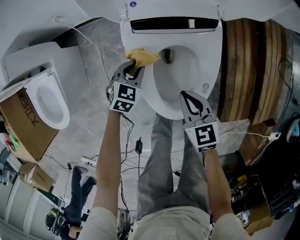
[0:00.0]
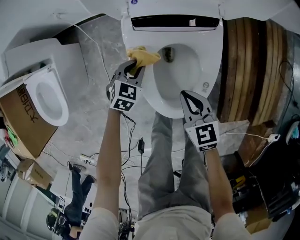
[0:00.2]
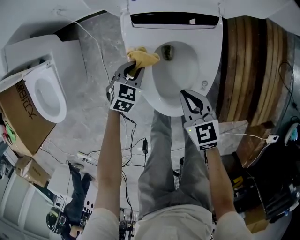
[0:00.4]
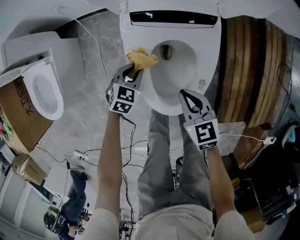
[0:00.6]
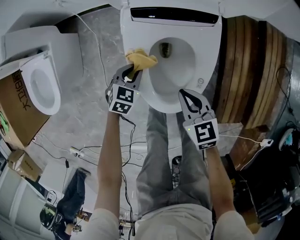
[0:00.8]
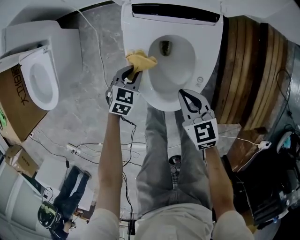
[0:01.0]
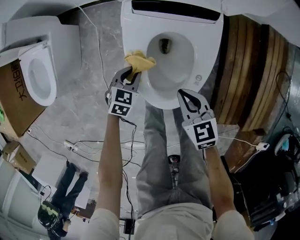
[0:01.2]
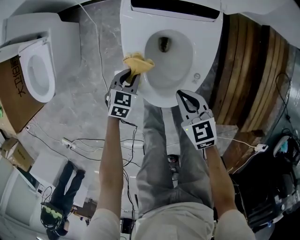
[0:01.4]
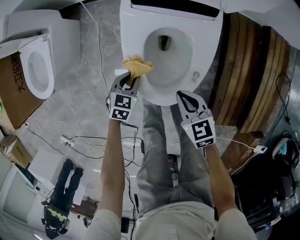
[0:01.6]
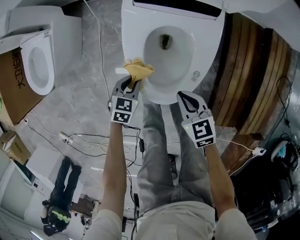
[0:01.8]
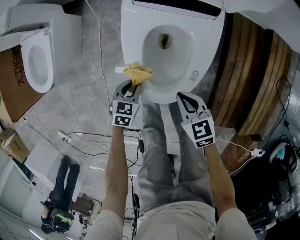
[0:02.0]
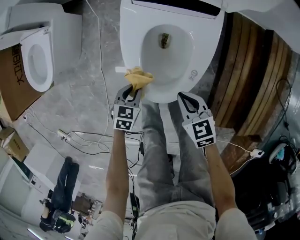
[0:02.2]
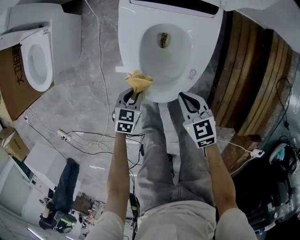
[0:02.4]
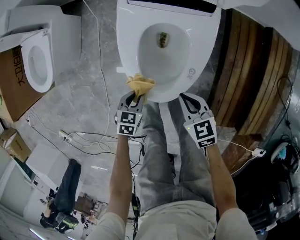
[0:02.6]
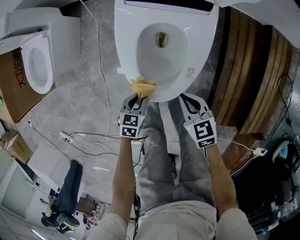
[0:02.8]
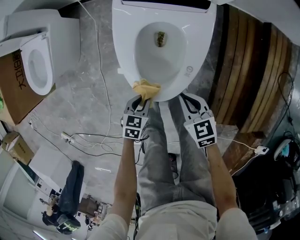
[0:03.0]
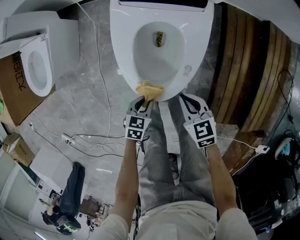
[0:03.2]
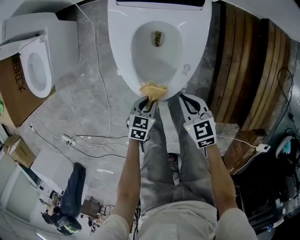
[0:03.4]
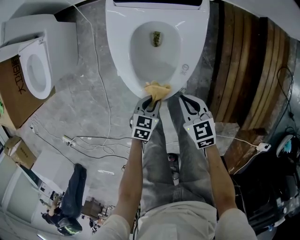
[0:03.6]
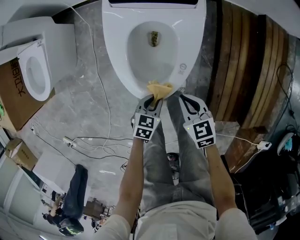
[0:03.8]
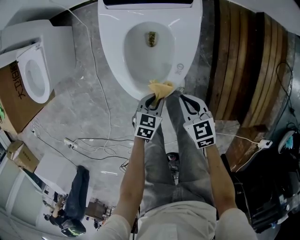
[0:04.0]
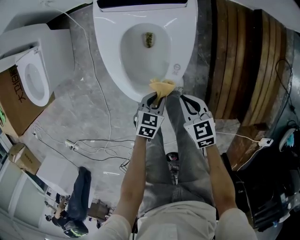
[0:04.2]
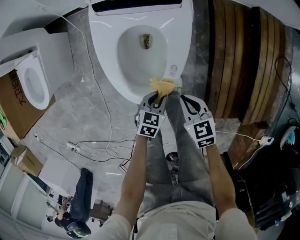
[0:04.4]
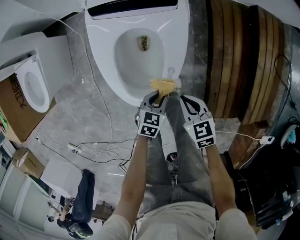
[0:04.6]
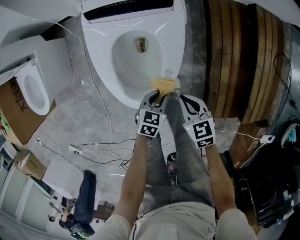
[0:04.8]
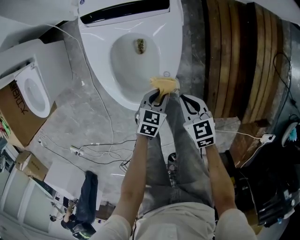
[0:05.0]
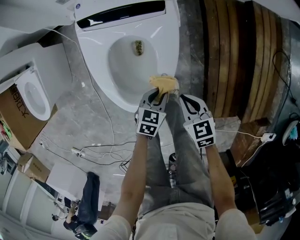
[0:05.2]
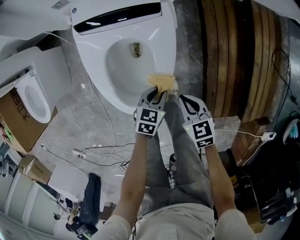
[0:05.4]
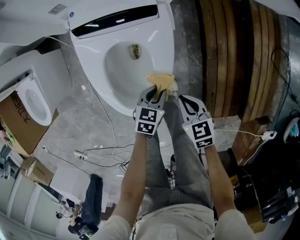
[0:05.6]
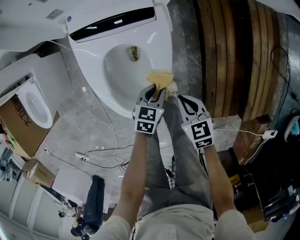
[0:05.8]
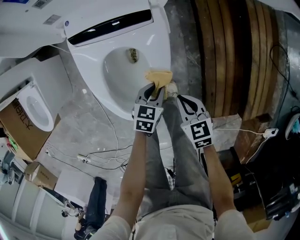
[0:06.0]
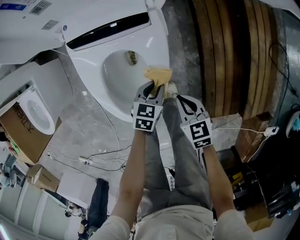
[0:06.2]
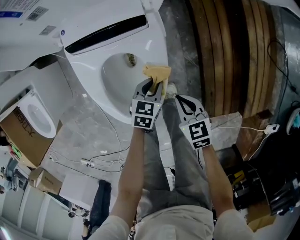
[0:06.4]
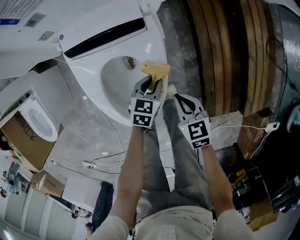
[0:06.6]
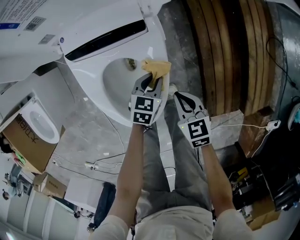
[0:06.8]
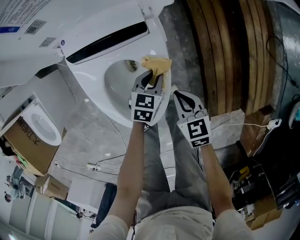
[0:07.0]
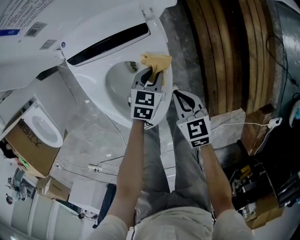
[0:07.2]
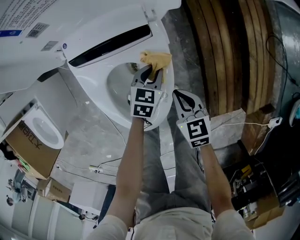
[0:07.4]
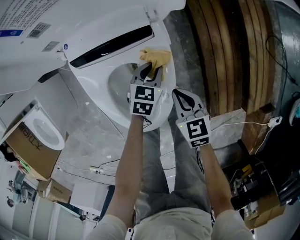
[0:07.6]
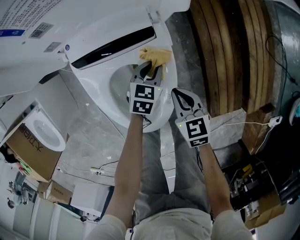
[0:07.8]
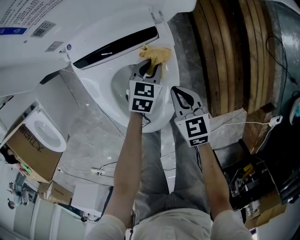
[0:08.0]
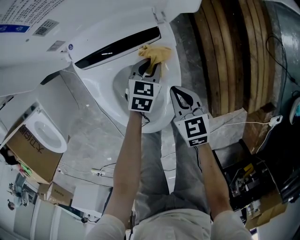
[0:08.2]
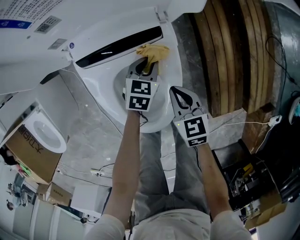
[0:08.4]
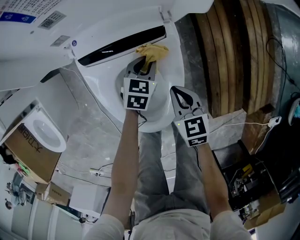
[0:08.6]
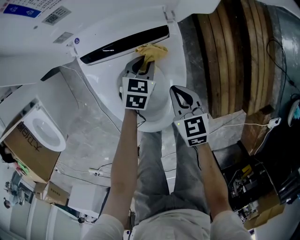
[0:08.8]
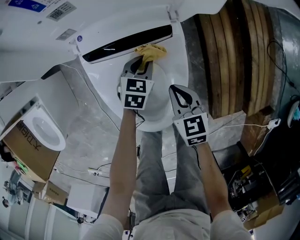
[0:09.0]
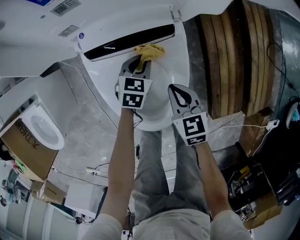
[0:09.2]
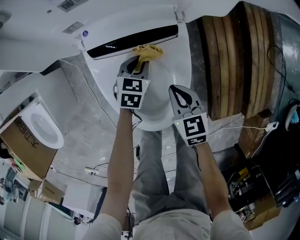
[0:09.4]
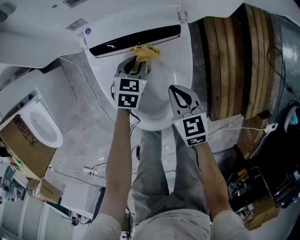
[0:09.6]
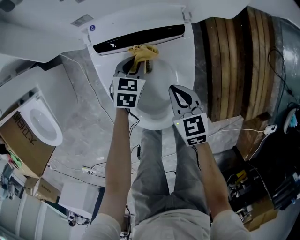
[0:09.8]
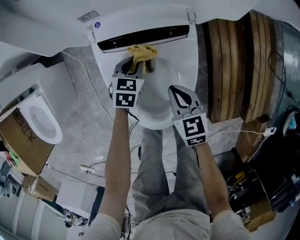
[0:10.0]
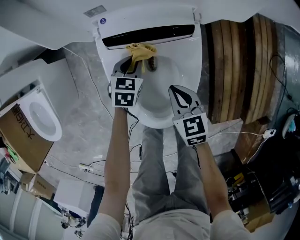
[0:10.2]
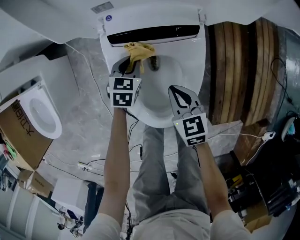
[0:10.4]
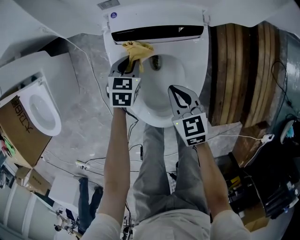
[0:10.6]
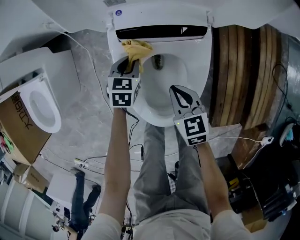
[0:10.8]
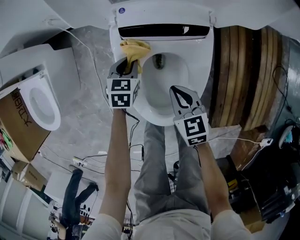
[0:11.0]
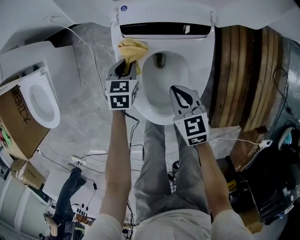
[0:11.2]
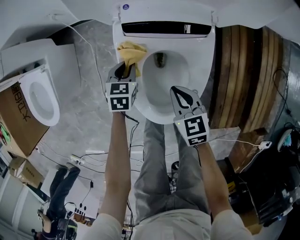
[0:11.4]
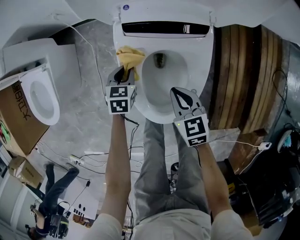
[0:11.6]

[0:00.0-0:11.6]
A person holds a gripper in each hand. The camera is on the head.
0.0 to 1.4 s: The left gripper heads backward, covering roughly 15 cm. Meanwhile the right gripper shifts roughly 5 cm backward.
1.4 to 2.8 s: The right gripper shifts approximately 5 cm backward. Meanwhile the left gripper heads backward, covering some 15 cm.
2.8 to 4.4 s: The right gripper shifts roughly 5 cm to the right. The left gripper is displaced to the right by roughly 15 cm.
4.4 to 5.8 s: The right gripper is displaced forward by approximately 5 cm. Meanwhile the left gripper shifts roughly 10 cm forward.
5.8 to 7.2 s: The left gripper shifts about 15 cm forward. Meanwhile the right gripper travels forward by approximately 5 cm.
7.2 to 8.8 s: The right gripper is displaced to the left by some 5 cm; the left gripper heads to the left and forward, covering about 10 cm.
8.8 to 10.2 s: The right gripper is displaced to the left by approximately 5 cm. The left gripper moves to the left, roughly 10 cm.
10.2 to 11.6 s: The left gripper goes roughly 10 cm to the left and backward.

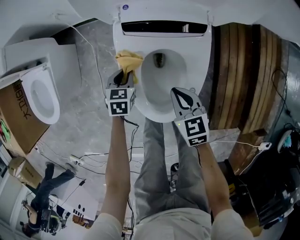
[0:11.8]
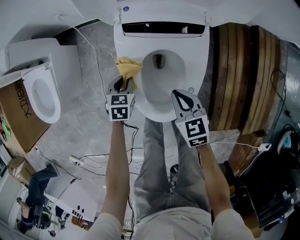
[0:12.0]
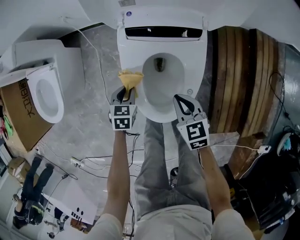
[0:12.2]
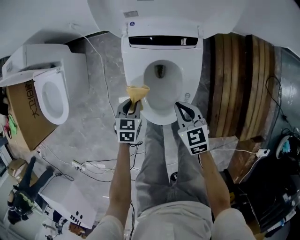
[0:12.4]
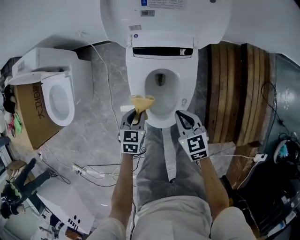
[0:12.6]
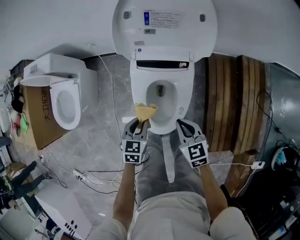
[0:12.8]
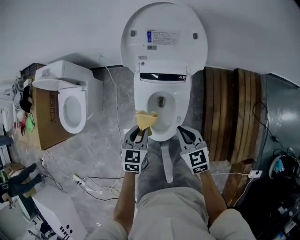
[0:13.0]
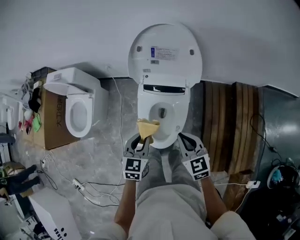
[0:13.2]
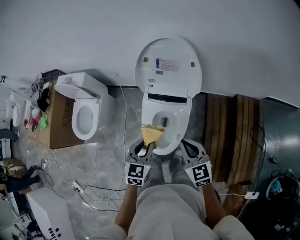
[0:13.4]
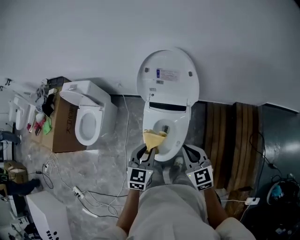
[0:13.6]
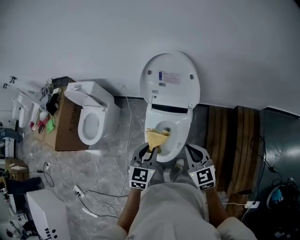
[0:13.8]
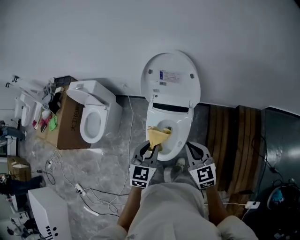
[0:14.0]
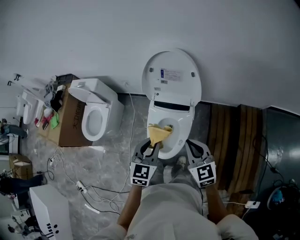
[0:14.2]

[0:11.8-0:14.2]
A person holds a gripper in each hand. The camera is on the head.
11.8 to 13.0 s: The grippers both shift upward by some 30 cm.
13.0 to 14.2 s: Both grippers move upward, about 20 cm.

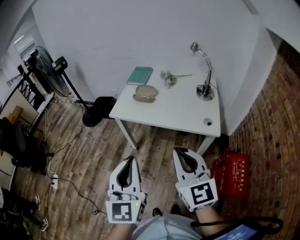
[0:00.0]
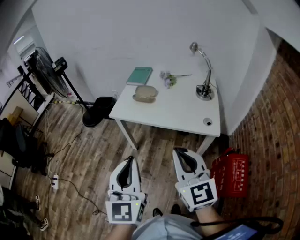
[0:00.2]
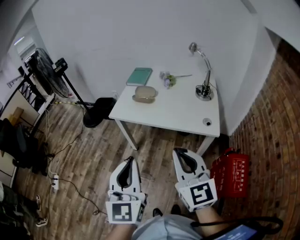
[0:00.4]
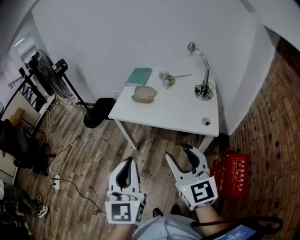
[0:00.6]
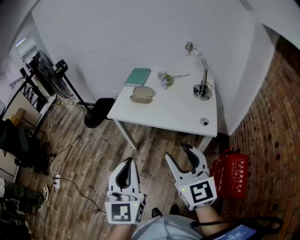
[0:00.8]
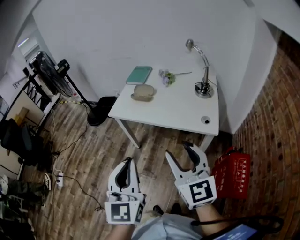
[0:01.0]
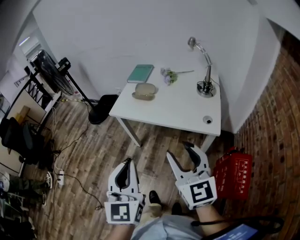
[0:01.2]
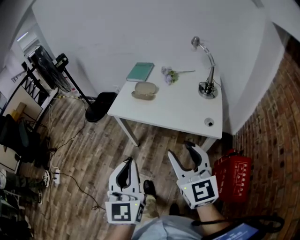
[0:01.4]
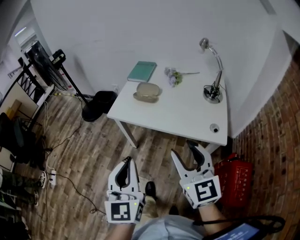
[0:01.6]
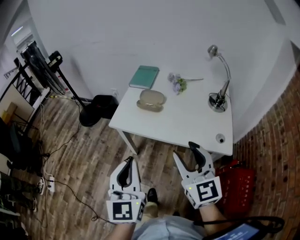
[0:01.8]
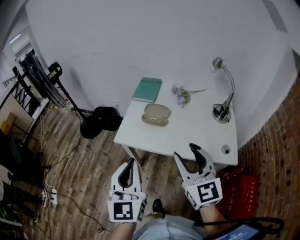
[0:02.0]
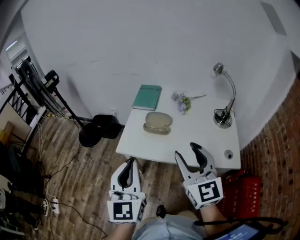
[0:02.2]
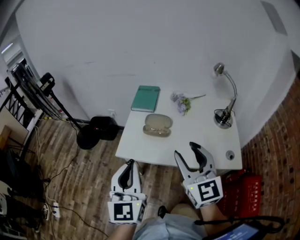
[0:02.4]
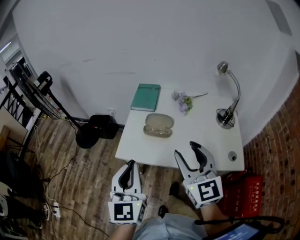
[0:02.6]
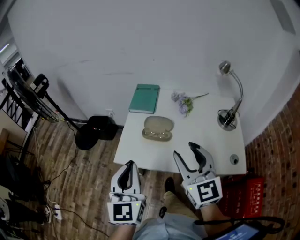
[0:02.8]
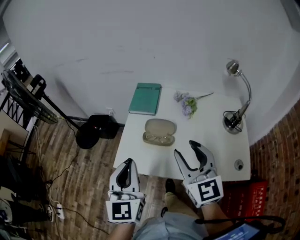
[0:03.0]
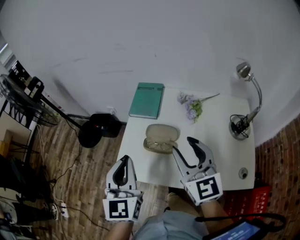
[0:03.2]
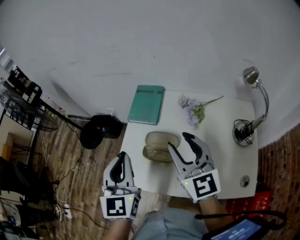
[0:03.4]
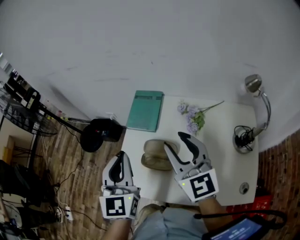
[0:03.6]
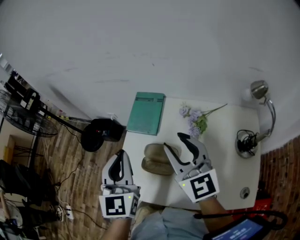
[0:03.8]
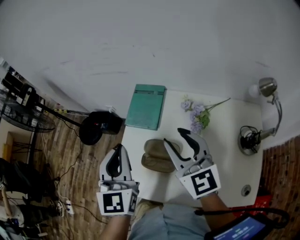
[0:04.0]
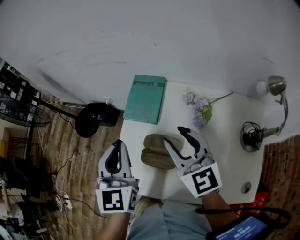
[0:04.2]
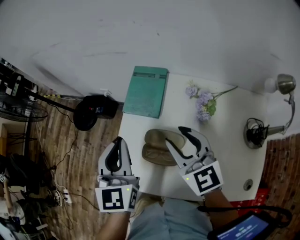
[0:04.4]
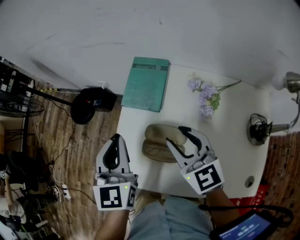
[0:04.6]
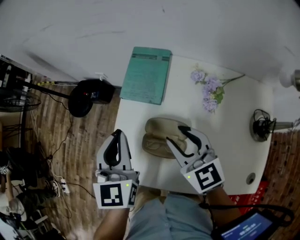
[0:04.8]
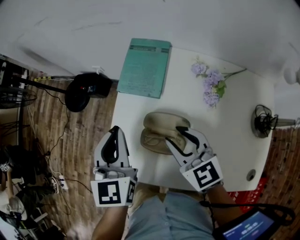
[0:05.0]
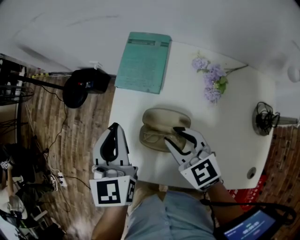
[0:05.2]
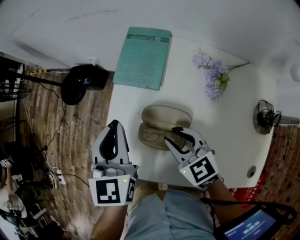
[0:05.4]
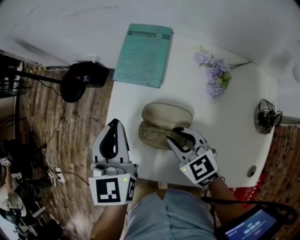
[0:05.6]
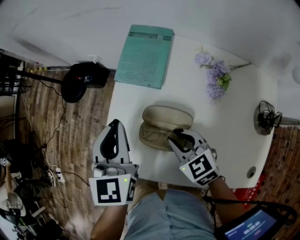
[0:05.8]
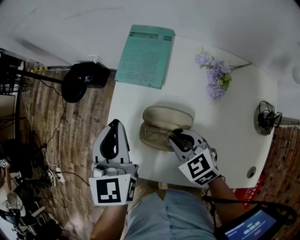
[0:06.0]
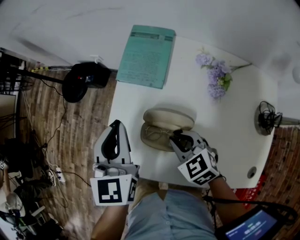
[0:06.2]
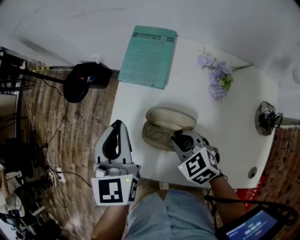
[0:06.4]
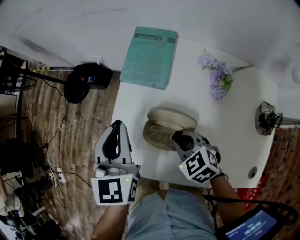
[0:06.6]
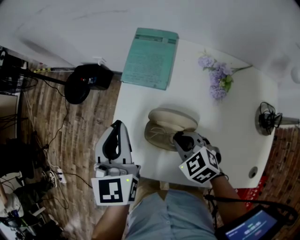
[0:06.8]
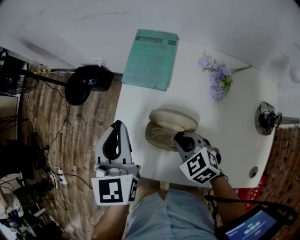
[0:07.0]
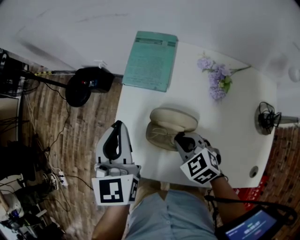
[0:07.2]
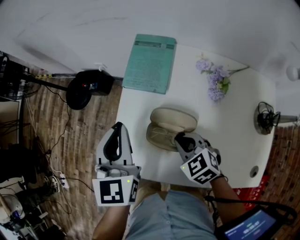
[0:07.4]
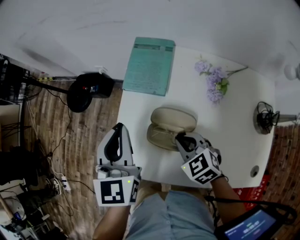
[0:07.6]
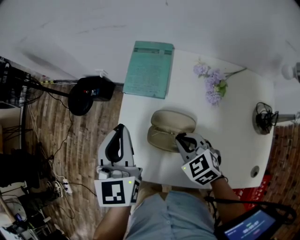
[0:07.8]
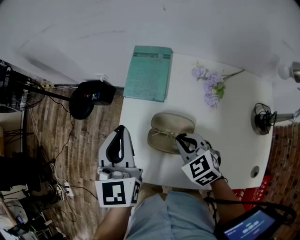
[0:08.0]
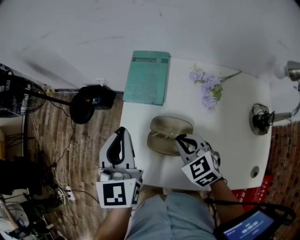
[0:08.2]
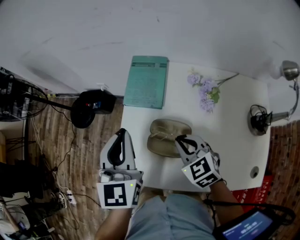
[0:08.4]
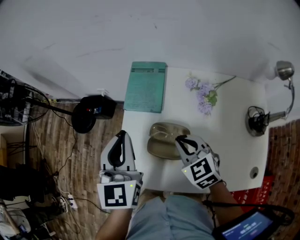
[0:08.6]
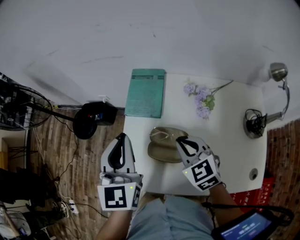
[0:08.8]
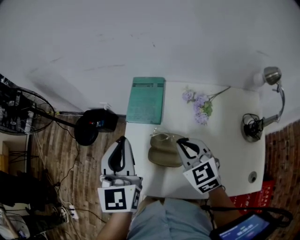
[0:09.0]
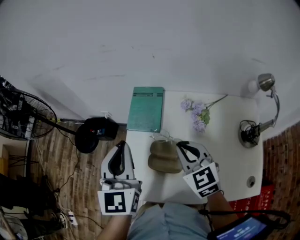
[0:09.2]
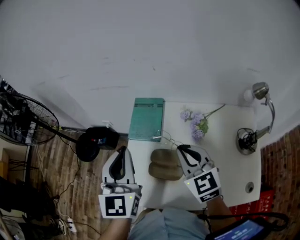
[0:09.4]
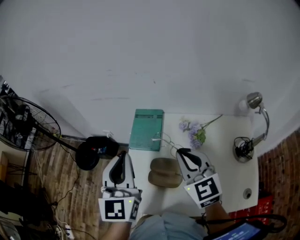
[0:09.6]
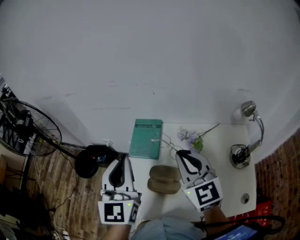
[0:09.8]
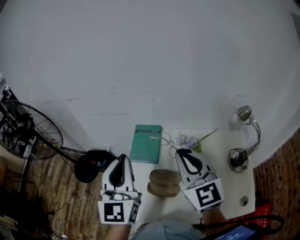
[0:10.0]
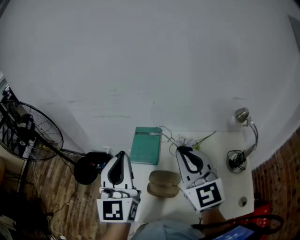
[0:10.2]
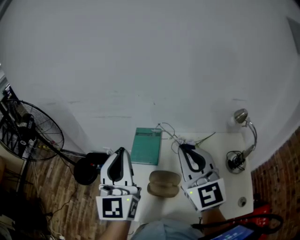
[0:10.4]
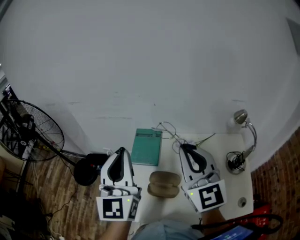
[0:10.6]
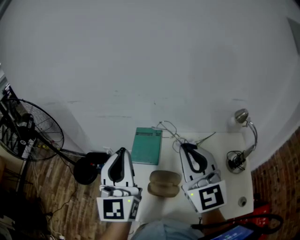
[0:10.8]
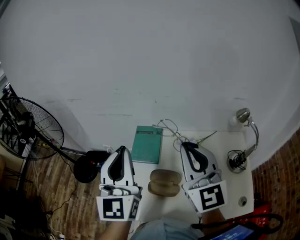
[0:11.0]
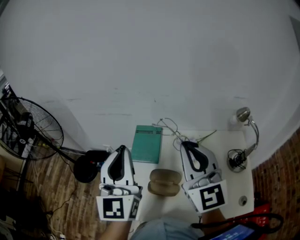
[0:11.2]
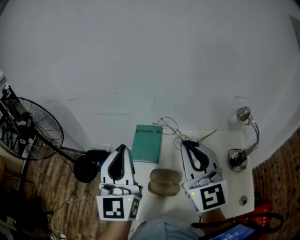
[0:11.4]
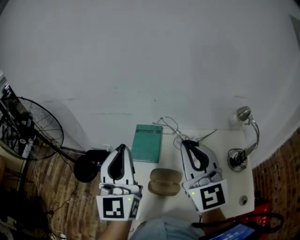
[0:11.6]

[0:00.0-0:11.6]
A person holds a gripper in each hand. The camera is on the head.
0.0 to 1.4 s: The right gripper changes place by about 5 cm, and opens up.
1.4 to 2.8 s: The grippers both shift forward by approximately 30 cm.
2.8 to 4.4 s: Both grippers travel together forward, about 25 cm.
4.4 to 5.8 s: The left gripper heads downward, covering some 5 cm, while the right gripper shifts approximately 15 cm downward, rotates about 30 degrees, and closes.
5.8 to 7.2 s: The grippers move only a little.
7.2 to 8.8 s: The two grippers go some 10 cm upward. The right gripper turns by some 20 degrees.
8.8 to 10.2 s: The right gripper moves upward, roughly 25 cm, and angles its fingers upward, by approximately 30 degrees; the left gripper heads upward, covering approximately 15 cm, and turns by about 20 degrees.
10.2 to 11.6 s: The grippers move only a little.
